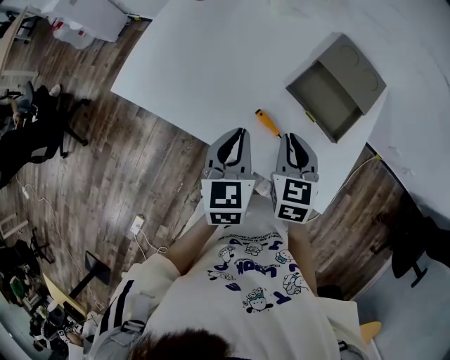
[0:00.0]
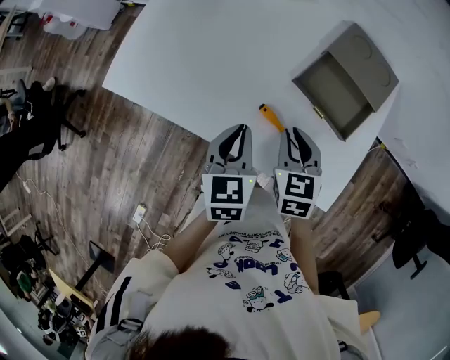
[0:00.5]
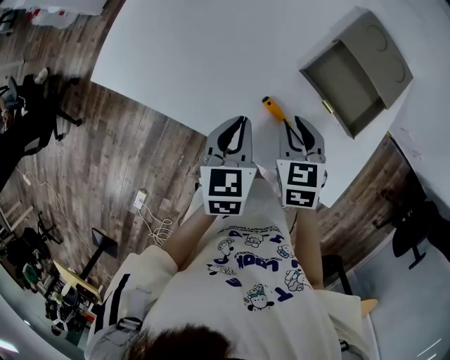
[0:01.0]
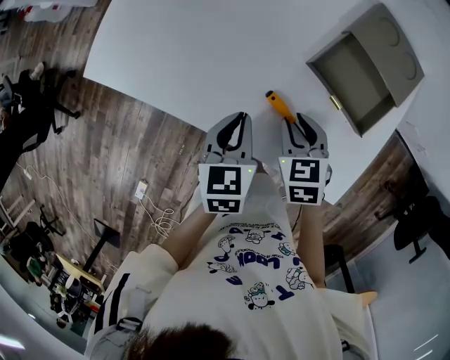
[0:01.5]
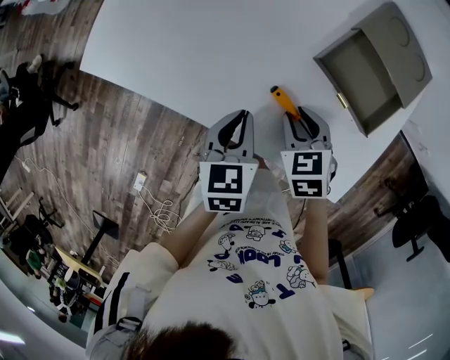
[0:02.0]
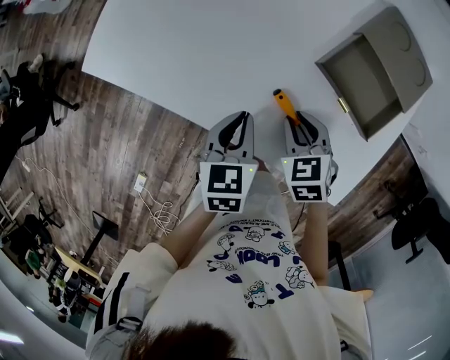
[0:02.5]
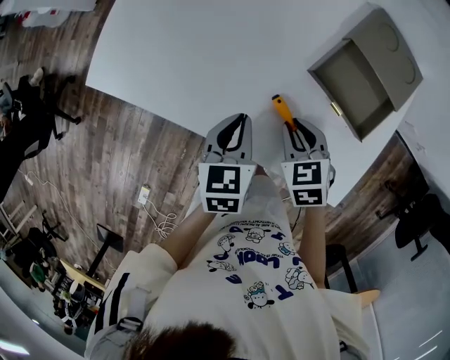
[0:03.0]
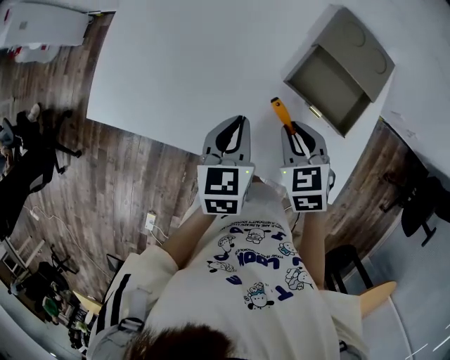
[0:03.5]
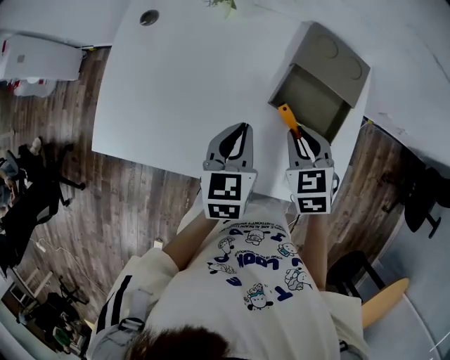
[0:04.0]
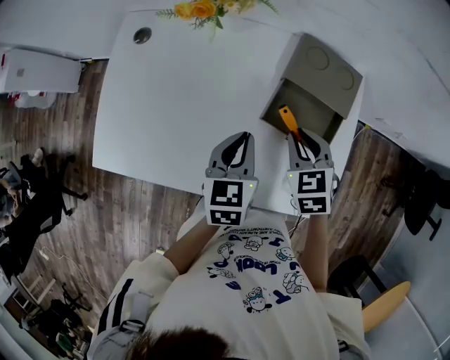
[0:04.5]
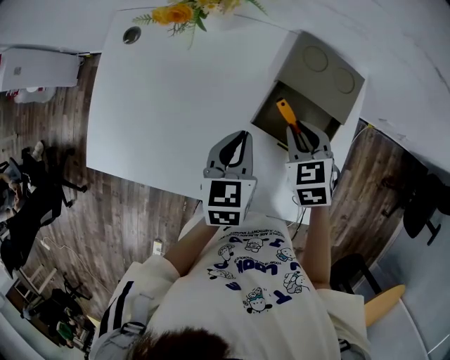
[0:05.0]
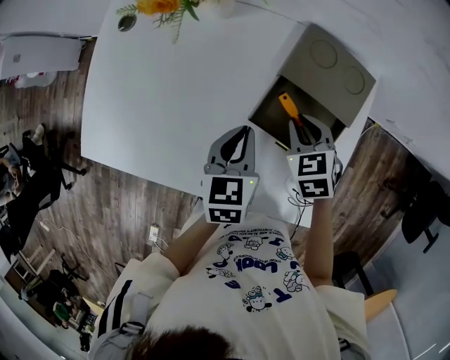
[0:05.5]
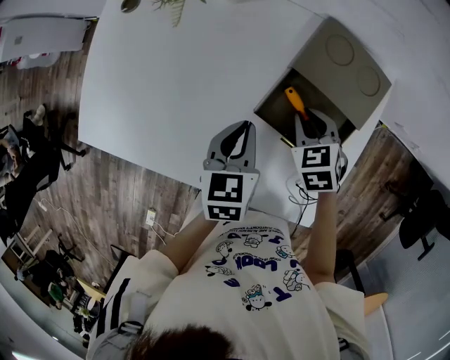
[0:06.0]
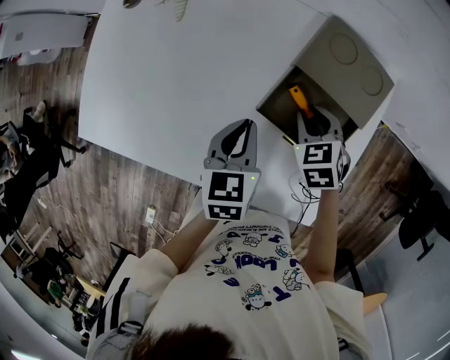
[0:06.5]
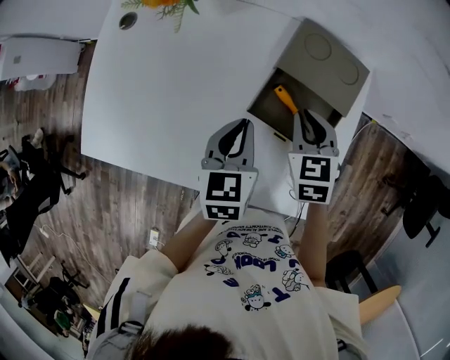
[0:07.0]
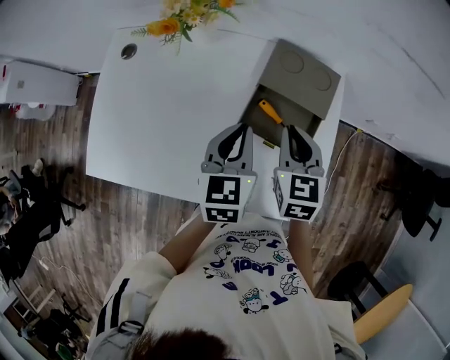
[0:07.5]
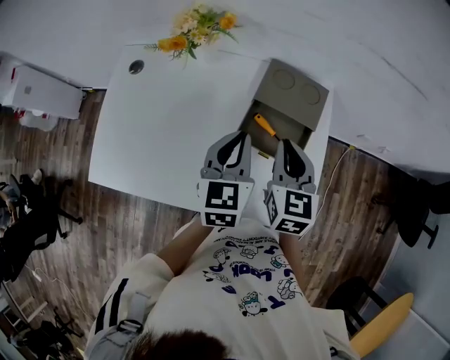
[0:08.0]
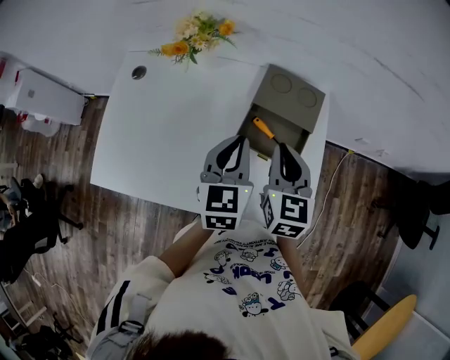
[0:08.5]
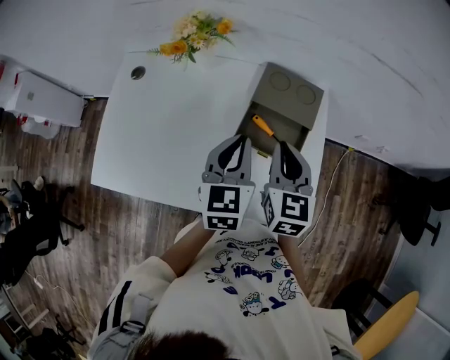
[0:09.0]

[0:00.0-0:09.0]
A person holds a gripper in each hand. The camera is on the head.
0:00.0 to 0:02.0: The grippers both shift downward by about 10 cm. The right gripper changes its angle by some 30 degrees, and opens its fingers.
0:02.0 to 0:04.5: The left gripper goes roughly 15 cm forward, upward and to the right, and changes its angle by about 20 degrees; the right gripper heads upward, forward and to the right, covering roughly 15 cm.
0:04.5 to 0:07.0: The right gripper reaches some 10 cm downward, then returns.
0:07.0 to 0:09.0: The left gripper shifts roughly 10 cm upward; the right gripper heads upward and backward, covering about 15 cm, and rotates roughly 30 degrees.

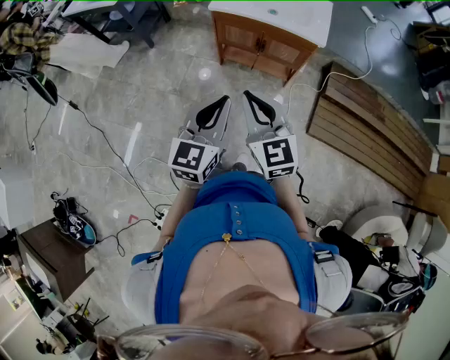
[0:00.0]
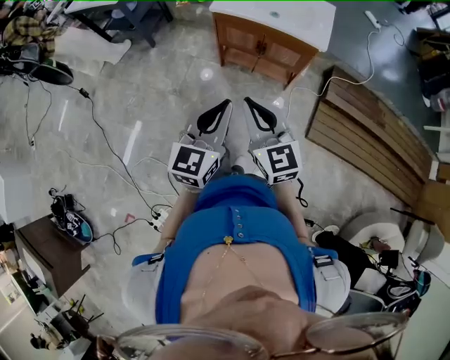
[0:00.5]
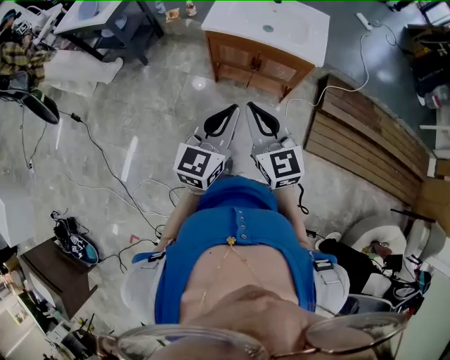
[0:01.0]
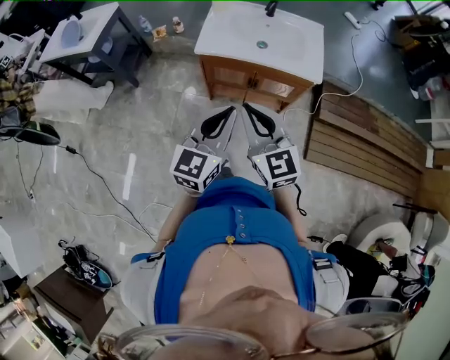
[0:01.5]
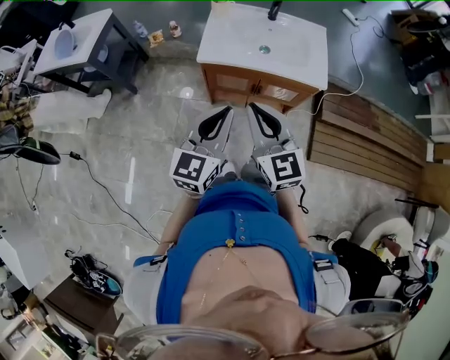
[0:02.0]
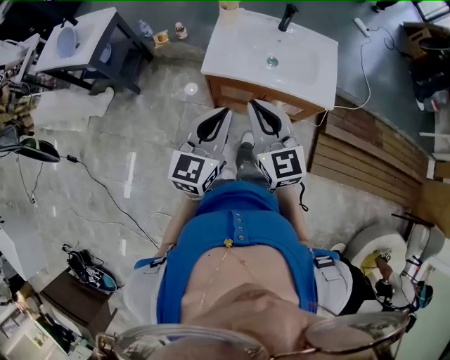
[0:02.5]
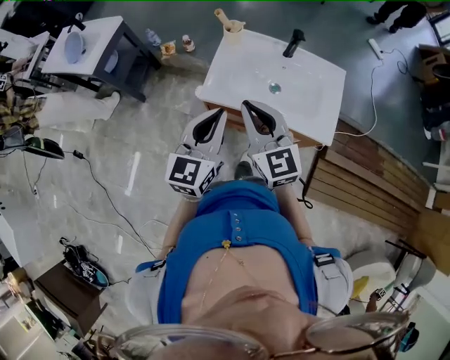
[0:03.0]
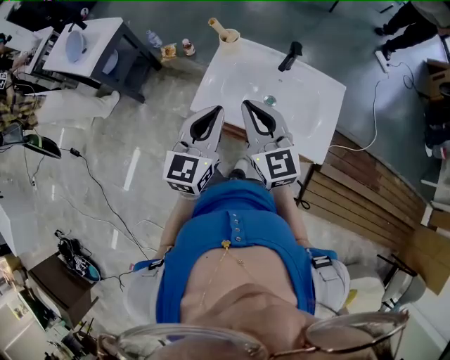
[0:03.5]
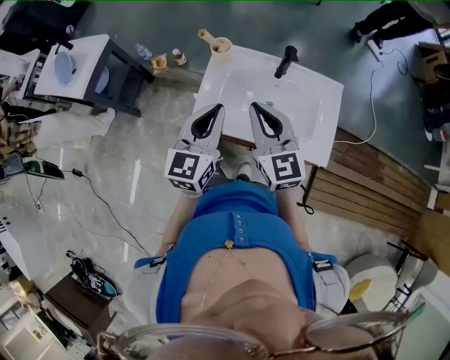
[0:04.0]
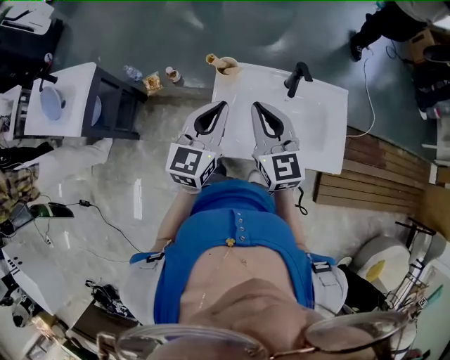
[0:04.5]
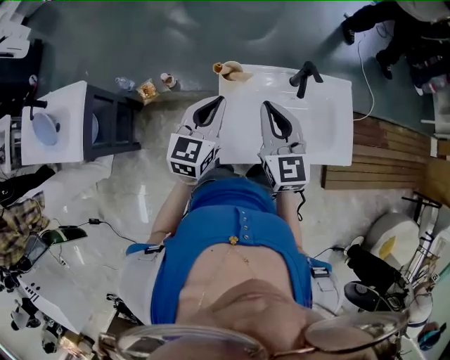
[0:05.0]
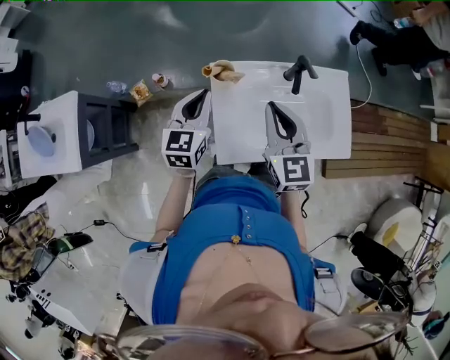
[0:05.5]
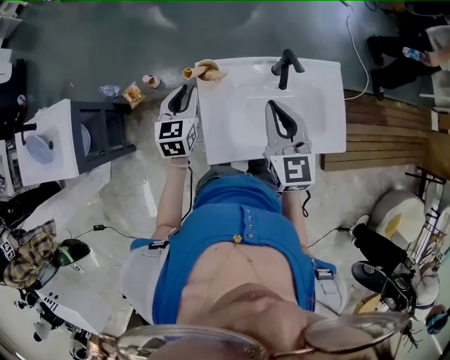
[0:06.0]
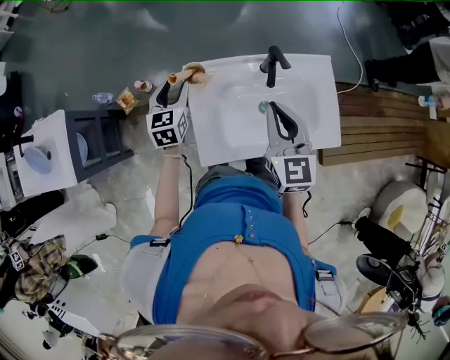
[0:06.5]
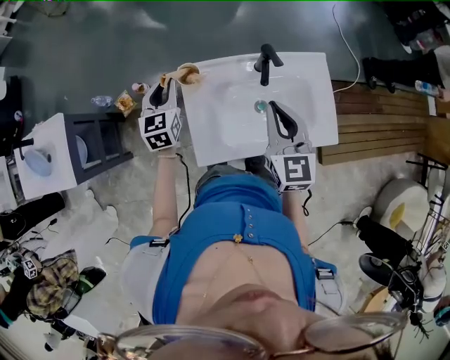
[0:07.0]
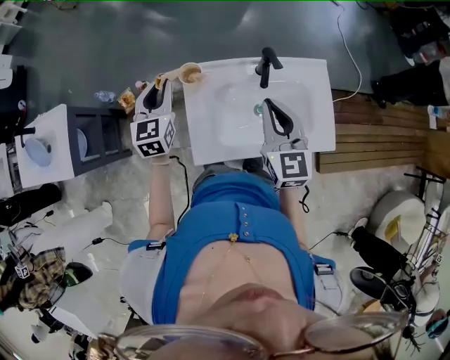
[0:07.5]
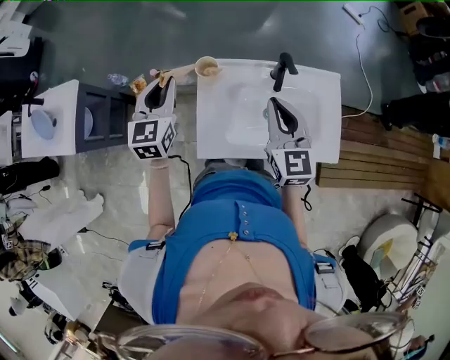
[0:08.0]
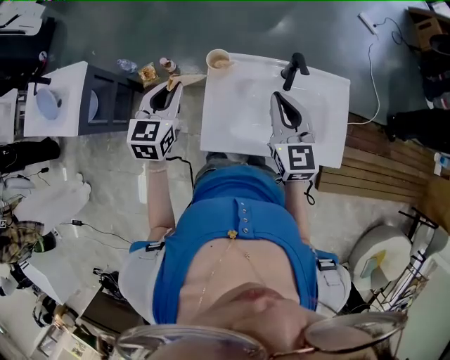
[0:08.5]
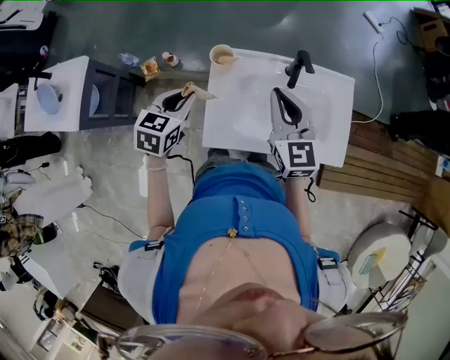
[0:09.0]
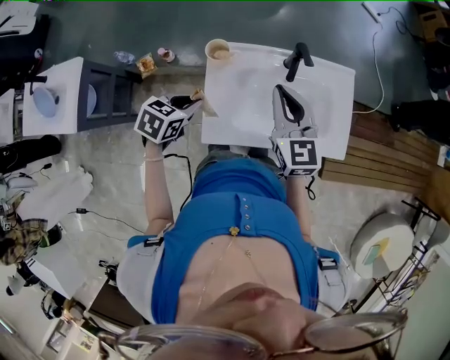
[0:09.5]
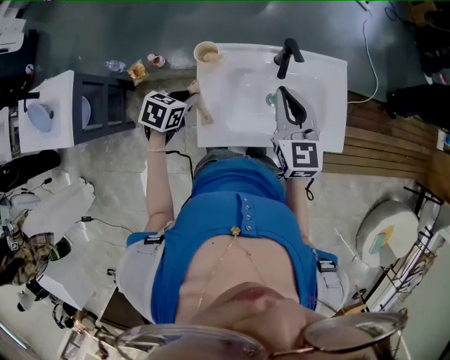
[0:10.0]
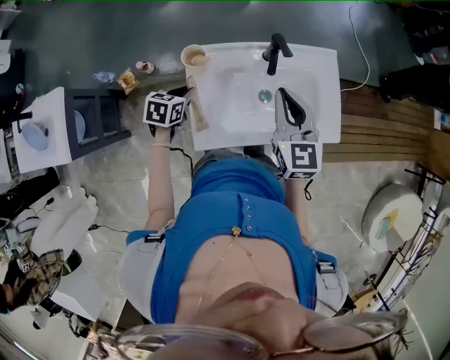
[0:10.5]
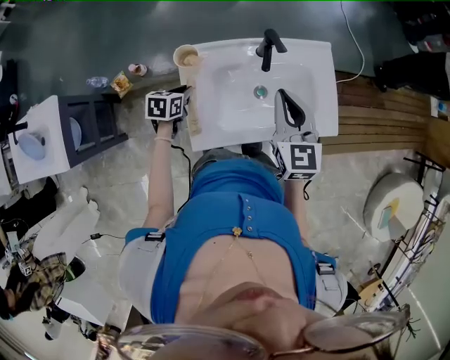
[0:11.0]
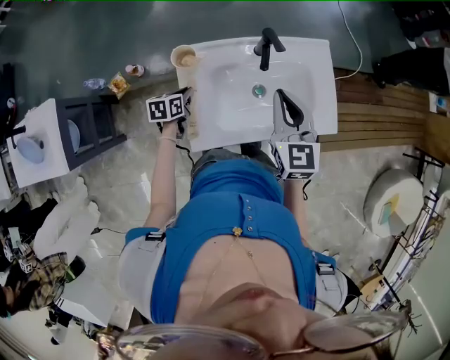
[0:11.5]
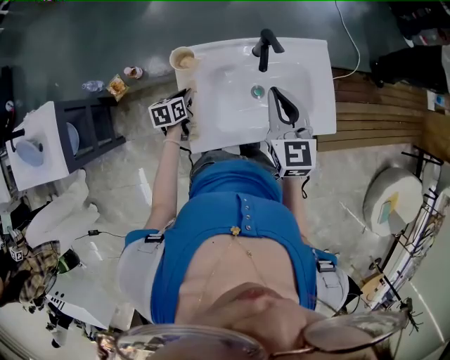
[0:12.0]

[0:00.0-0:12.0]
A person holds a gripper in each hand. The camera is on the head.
0:00.0 to 0:02.0: The grippers both shift forward by about 25 cm.
0:02.0 to 0:04.0: Both grippers move forward, roughly 35 cm.
0:04.0 to 0:06.0: The right gripper moves forward, approximately 15 cm, and rotates roughly 30 degrees. The left gripper travels forward, downward and to the left by approximately 30 cm, and changes its angle by roughly 20 degrees.
0:06.0 to 0:08.0: The left gripper goes some 10 cm upward, and opens and closes again.
0:08.0 to 0:10.0: The left gripper heads downward, covering approximately 15 cm, and points its fingers roughly 40 degrees further downward.
0:10.0 to 0:12.0: The left gripper is displaced downward by approximately 15 cm, and turns by about 30 degrees.

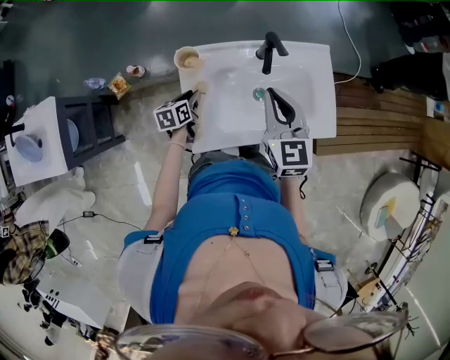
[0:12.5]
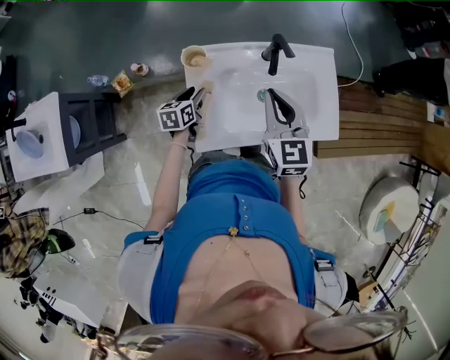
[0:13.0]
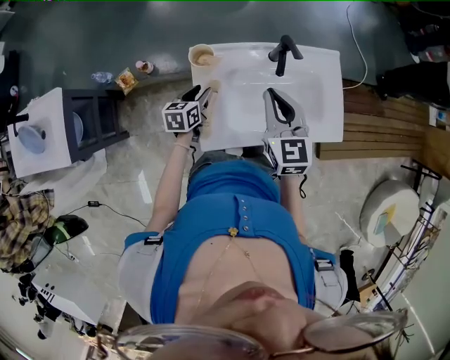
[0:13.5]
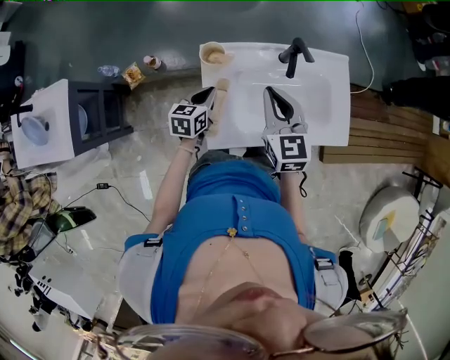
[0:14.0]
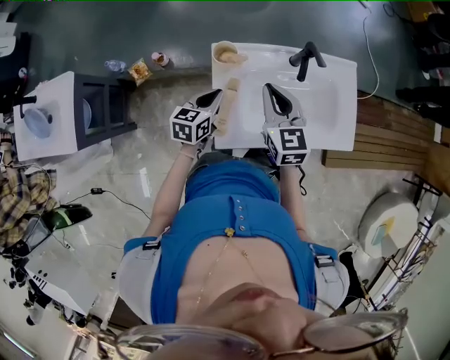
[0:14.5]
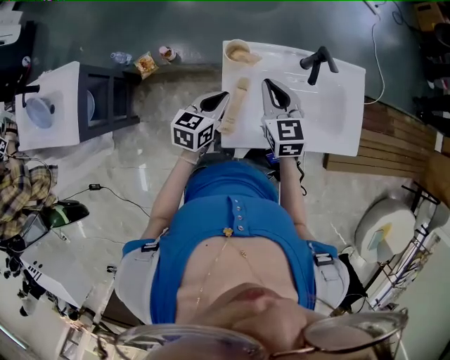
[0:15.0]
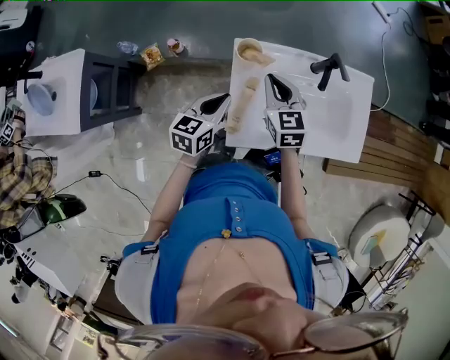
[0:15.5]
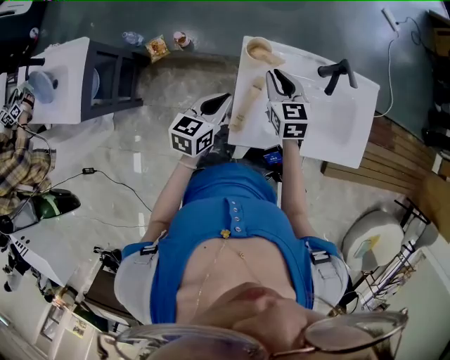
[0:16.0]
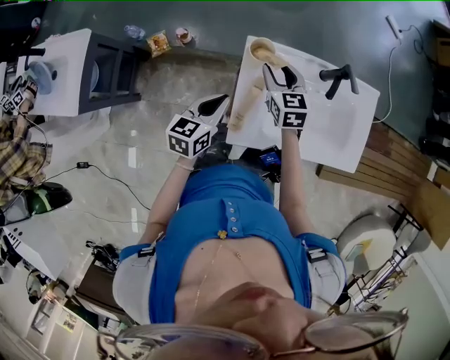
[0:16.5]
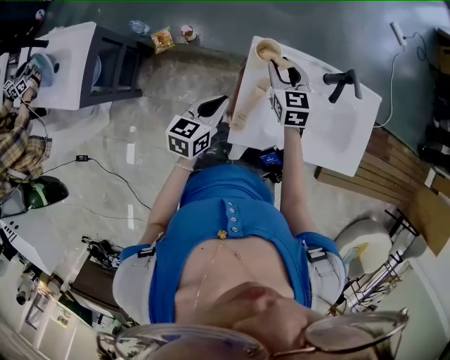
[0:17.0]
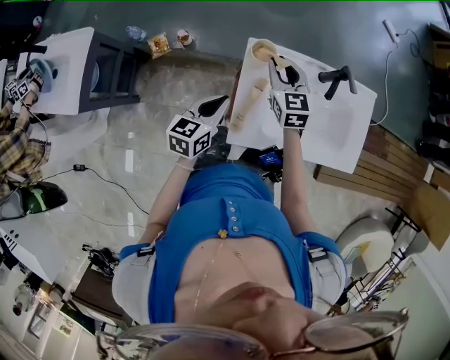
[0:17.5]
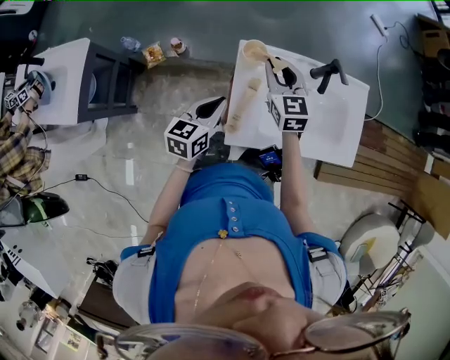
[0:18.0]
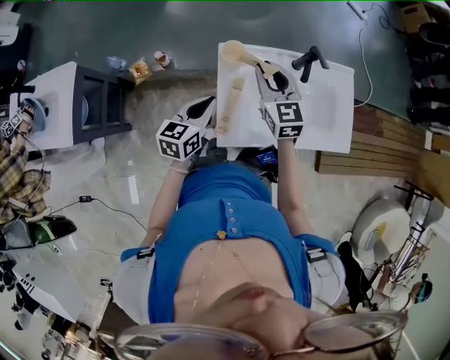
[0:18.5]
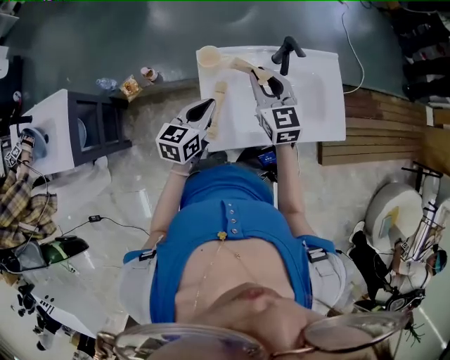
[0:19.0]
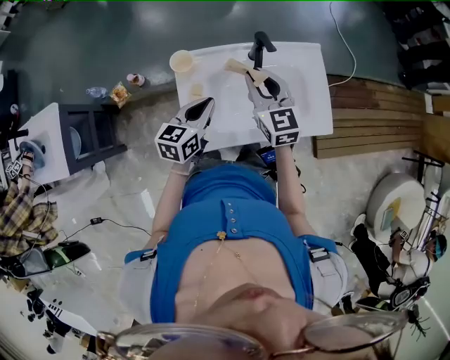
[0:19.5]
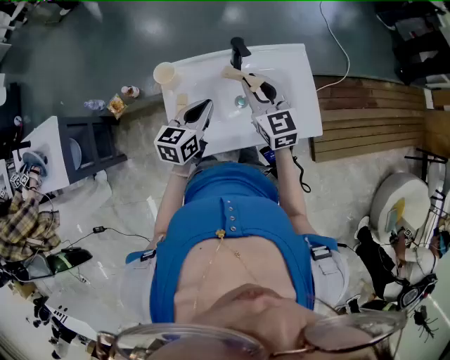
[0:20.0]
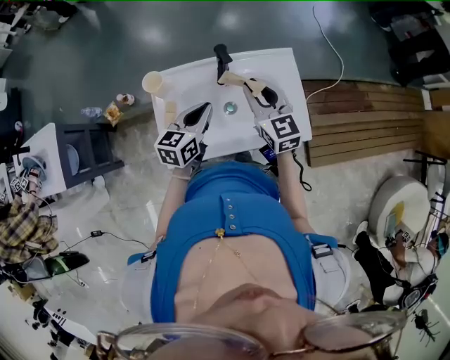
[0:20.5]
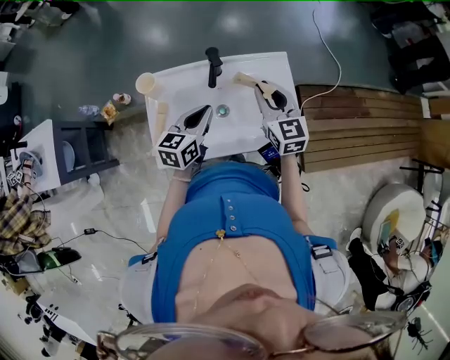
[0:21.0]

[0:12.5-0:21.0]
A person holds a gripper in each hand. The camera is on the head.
0:12.5 to 0:14.5: The left gripper heads upward, covering some 10 cm, changes its angle by some 20 degrees, and closes up; the right gripper shifts approximately 10 cm to the left.
0:14.5 to 0:16.5: The right gripper travels downward, to the left and forward by approximately 15 cm, and opens up, while the left gripper is displaced to the left by roughly 5 cm.
0:16.5 to 0:19.0: The left gripper goes approximately 10 cm to the right, while the right gripper is displaced upward, to the right and backward by roughly 15 cm, and closes up.
0:19.0 to 0:21.0: The two grippers go about 25 cm to the right.
